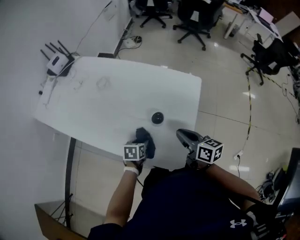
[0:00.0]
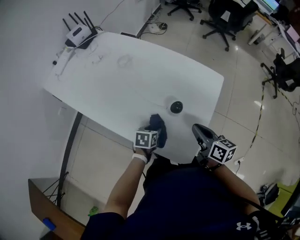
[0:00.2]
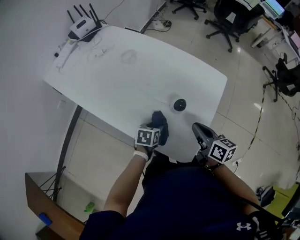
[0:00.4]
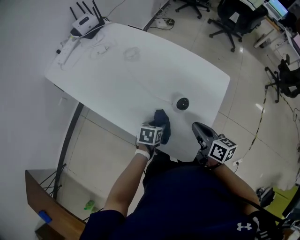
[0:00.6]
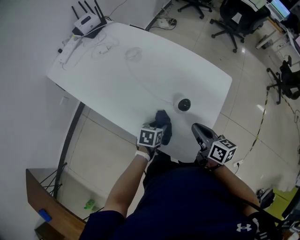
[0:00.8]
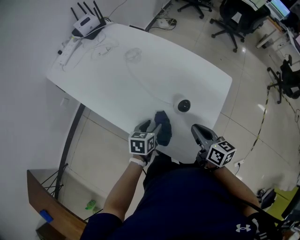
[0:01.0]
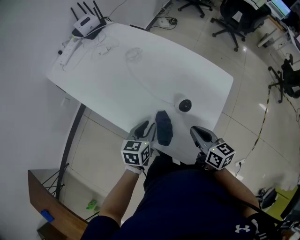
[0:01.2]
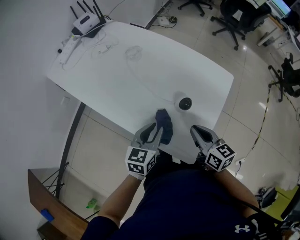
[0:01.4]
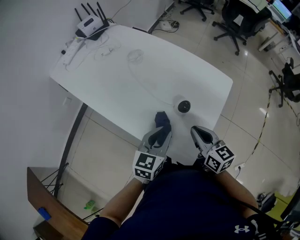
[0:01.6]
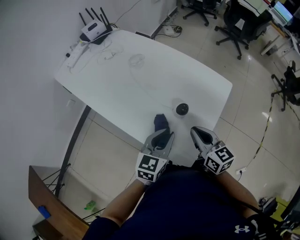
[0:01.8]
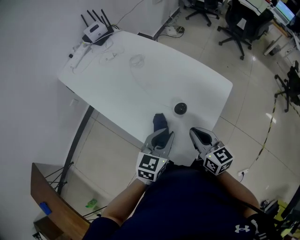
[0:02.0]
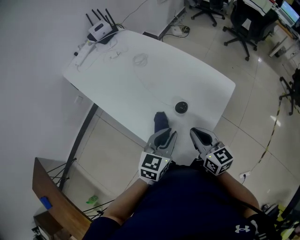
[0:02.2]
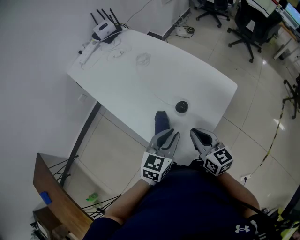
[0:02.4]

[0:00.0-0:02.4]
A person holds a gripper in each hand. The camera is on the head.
0:00.0 to 0:01.2: The left gripper shifts approximately 15 cm upward and to the left, and changes its angle by some 30 degrees. Meanwhile the right gripper travels to the left by roughly 10 cm.
0:01.2 to 0:02.4: The left gripper goes some 15 cm to the right, upward and backward; the right gripper changes place by some 5 cm.

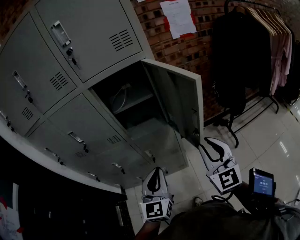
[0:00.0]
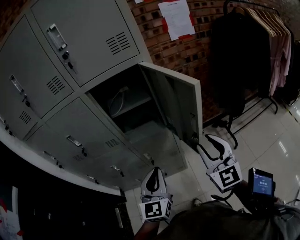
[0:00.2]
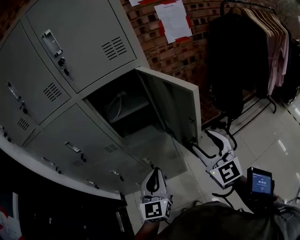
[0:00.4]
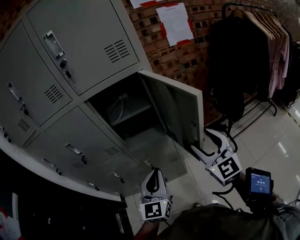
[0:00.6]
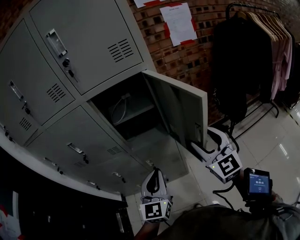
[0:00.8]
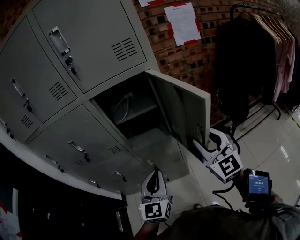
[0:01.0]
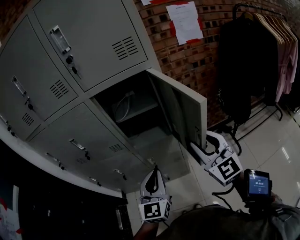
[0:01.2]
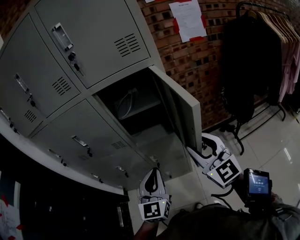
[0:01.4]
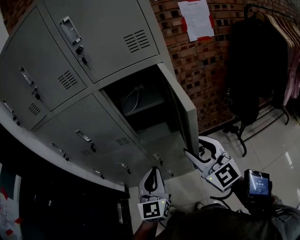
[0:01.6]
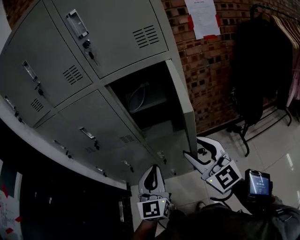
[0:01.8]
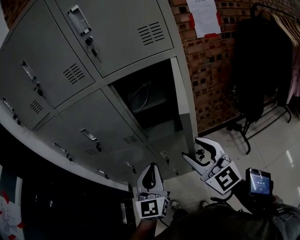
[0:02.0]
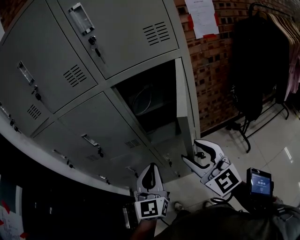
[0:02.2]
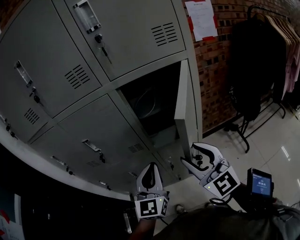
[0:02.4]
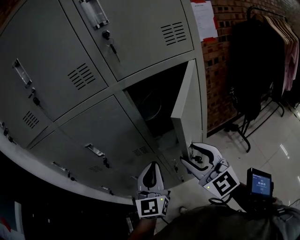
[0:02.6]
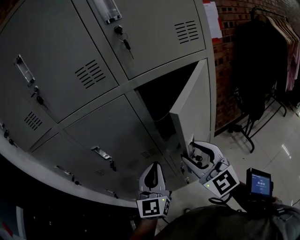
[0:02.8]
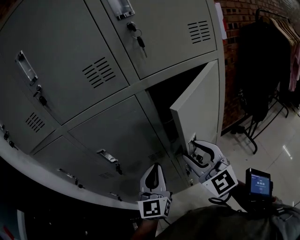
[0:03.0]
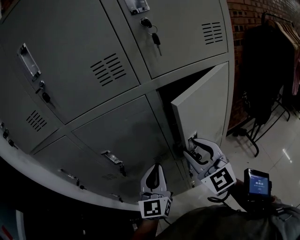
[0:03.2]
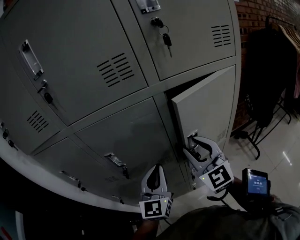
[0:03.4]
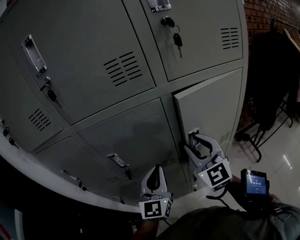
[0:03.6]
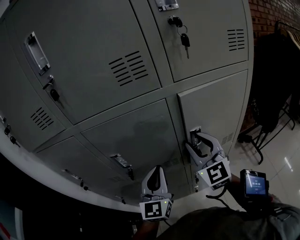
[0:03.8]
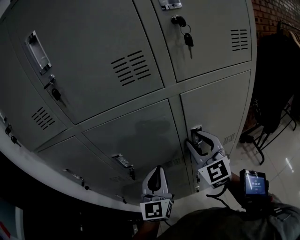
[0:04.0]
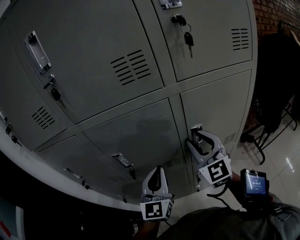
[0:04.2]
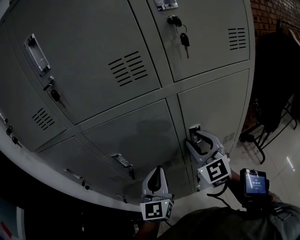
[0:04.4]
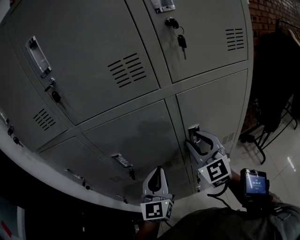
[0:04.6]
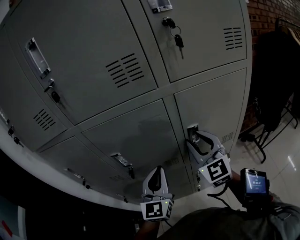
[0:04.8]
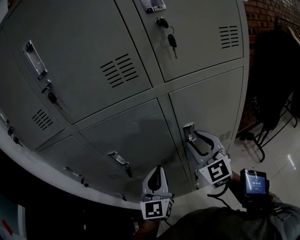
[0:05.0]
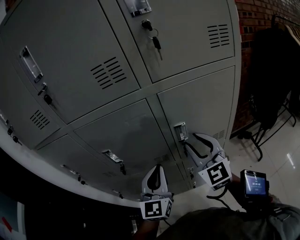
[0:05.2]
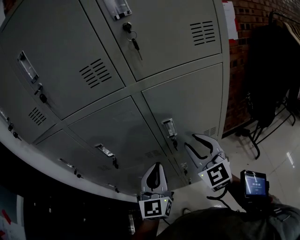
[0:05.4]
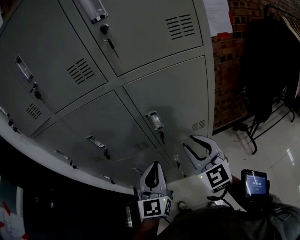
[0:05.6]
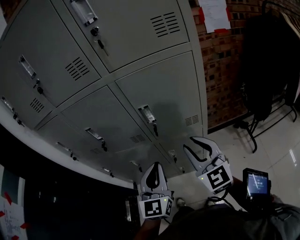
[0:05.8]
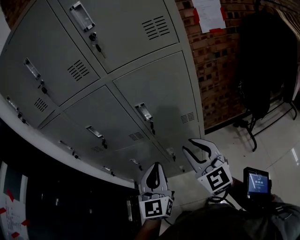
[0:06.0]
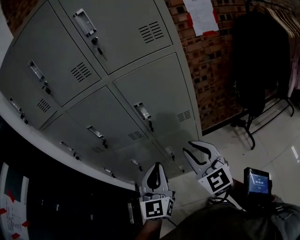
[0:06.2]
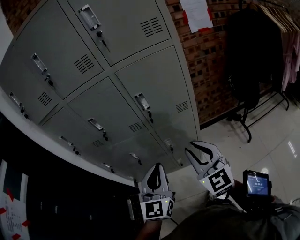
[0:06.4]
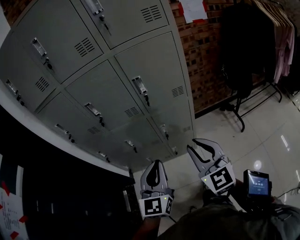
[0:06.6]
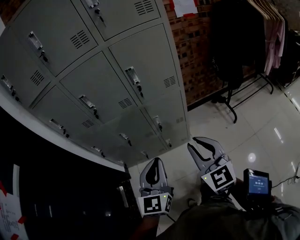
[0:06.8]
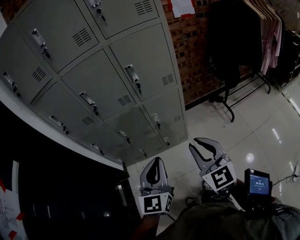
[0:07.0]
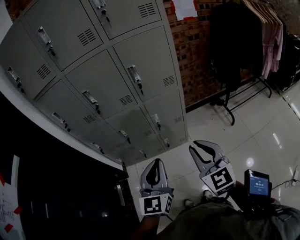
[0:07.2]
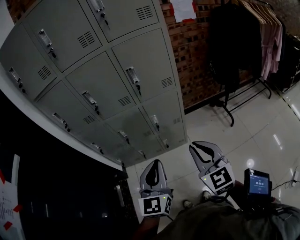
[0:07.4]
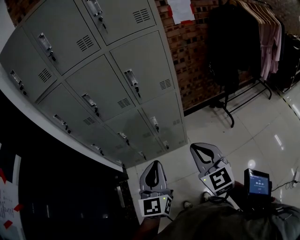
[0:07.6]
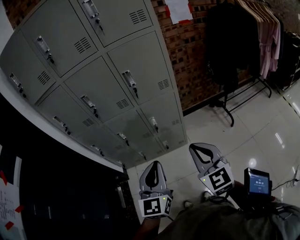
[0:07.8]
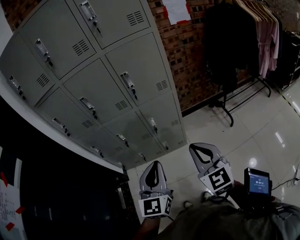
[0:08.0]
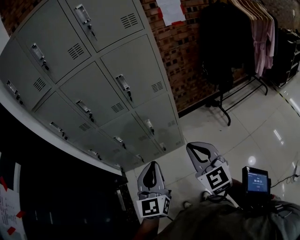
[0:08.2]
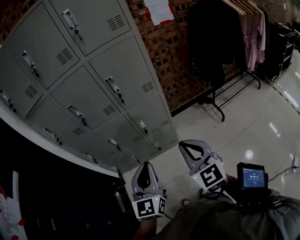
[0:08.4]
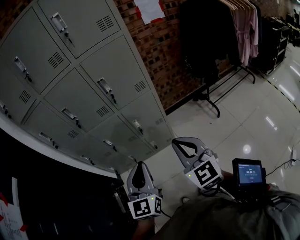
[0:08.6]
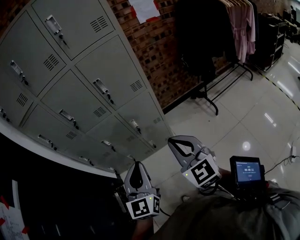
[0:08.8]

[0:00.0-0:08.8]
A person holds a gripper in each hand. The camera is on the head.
0:00.0 to 0:01.4: The right gripper moves forward, approximately 5 cm, and opens, then closes once more.
0:01.4 to 0:03.0: The two grippers go approximately 25 cm to the left and forward.
0:03.0 to 0:04.4: The right gripper heads forward, covering about 10 cm. Meanwhile the left gripper travels to the left by about 5 cm.
0:04.4 to 0:05.8: The left gripper heads to the right and backward, covering approximately 20 cm. Meanwhile the right gripper goes approximately 20 cm backward and to the right.
0:05.8 to 0:07.4: Both grippers move backward, approximately 30 cm.
0:07.4 to 0:08.8: The grippers move only a little.

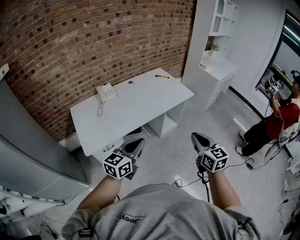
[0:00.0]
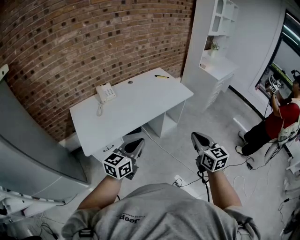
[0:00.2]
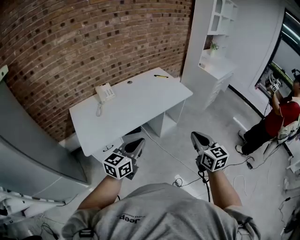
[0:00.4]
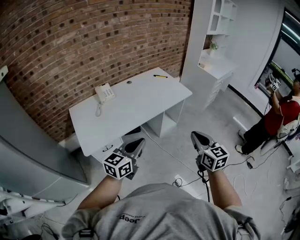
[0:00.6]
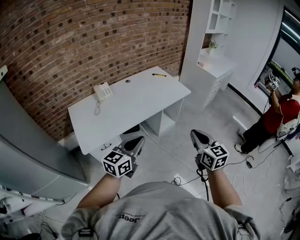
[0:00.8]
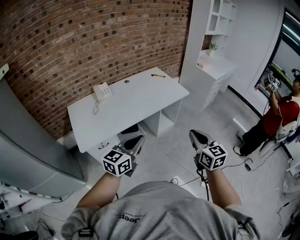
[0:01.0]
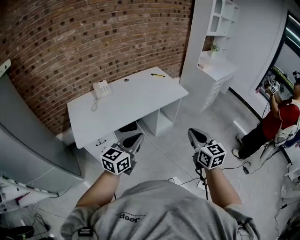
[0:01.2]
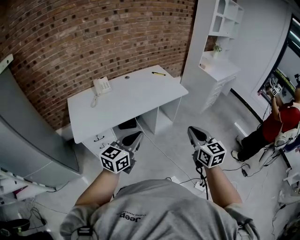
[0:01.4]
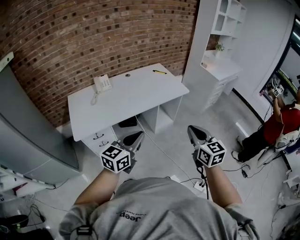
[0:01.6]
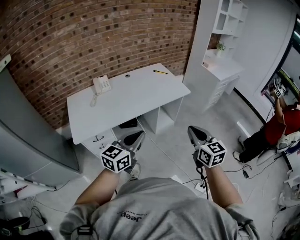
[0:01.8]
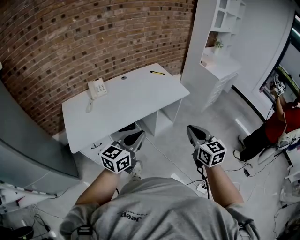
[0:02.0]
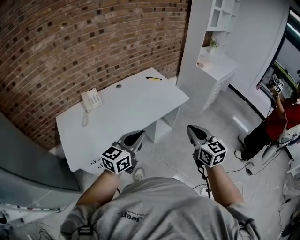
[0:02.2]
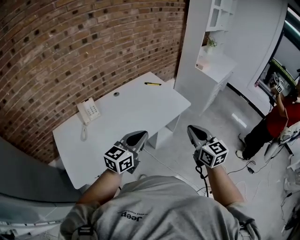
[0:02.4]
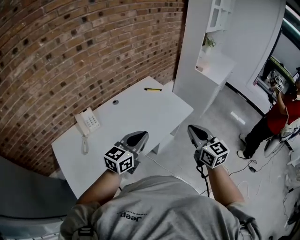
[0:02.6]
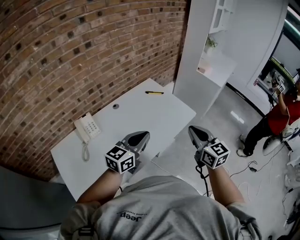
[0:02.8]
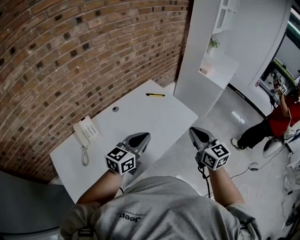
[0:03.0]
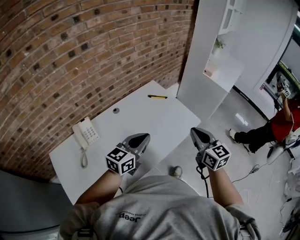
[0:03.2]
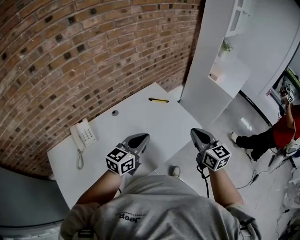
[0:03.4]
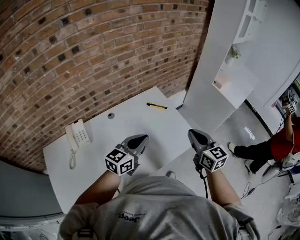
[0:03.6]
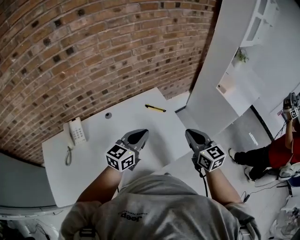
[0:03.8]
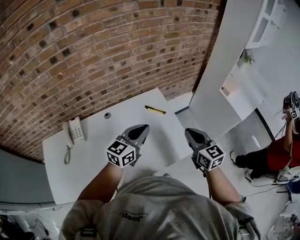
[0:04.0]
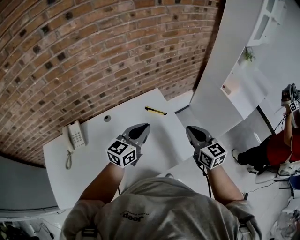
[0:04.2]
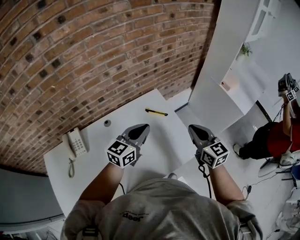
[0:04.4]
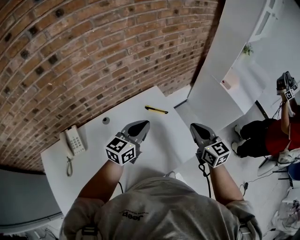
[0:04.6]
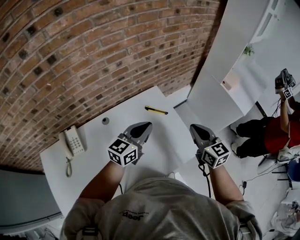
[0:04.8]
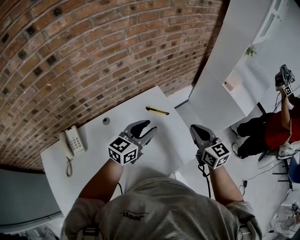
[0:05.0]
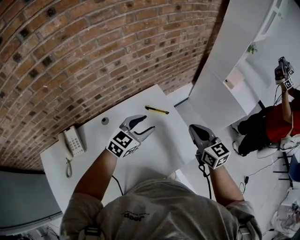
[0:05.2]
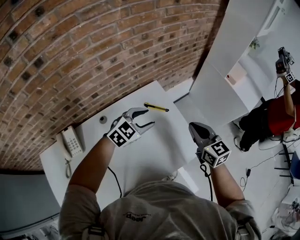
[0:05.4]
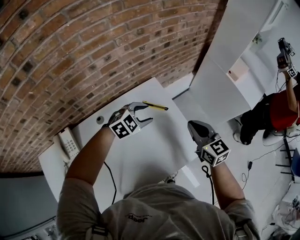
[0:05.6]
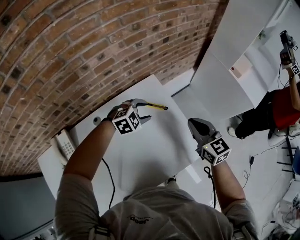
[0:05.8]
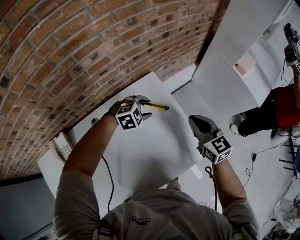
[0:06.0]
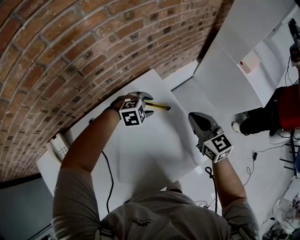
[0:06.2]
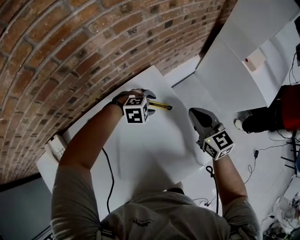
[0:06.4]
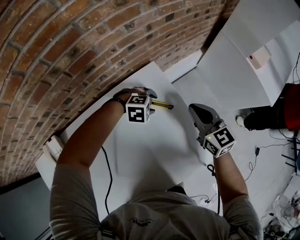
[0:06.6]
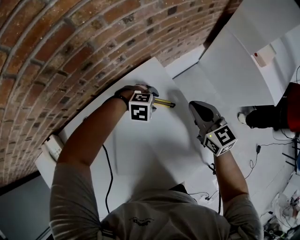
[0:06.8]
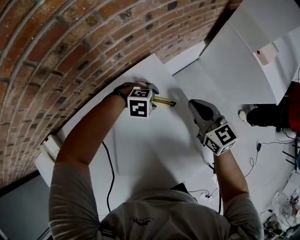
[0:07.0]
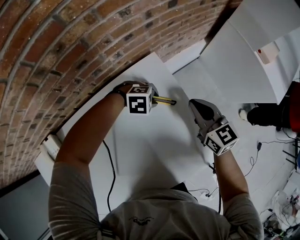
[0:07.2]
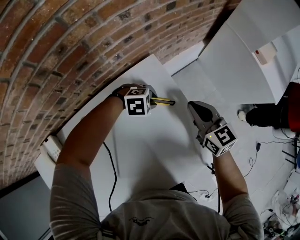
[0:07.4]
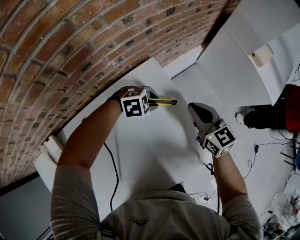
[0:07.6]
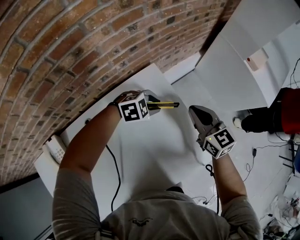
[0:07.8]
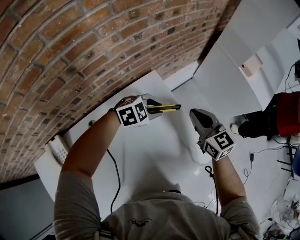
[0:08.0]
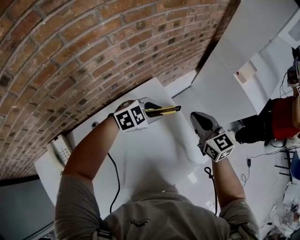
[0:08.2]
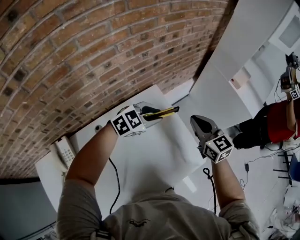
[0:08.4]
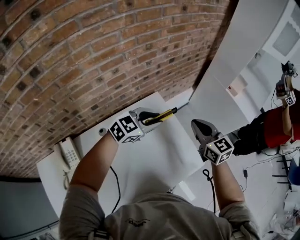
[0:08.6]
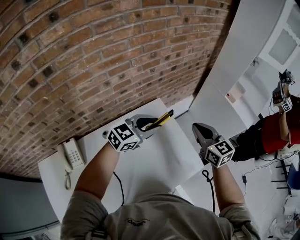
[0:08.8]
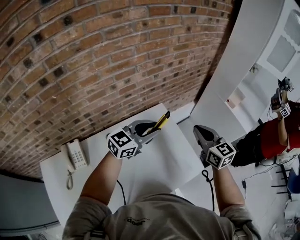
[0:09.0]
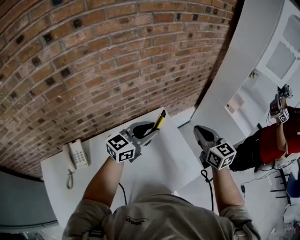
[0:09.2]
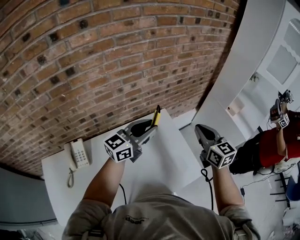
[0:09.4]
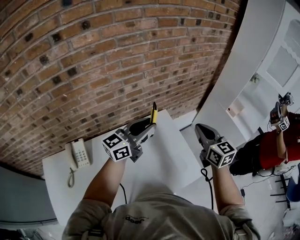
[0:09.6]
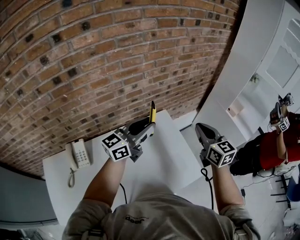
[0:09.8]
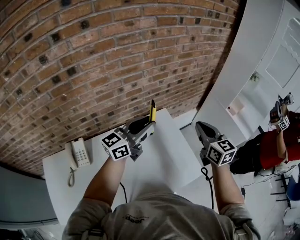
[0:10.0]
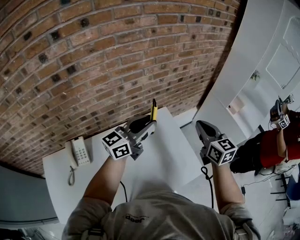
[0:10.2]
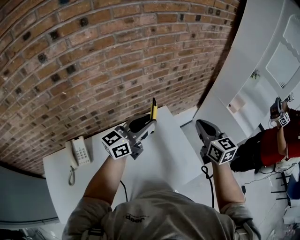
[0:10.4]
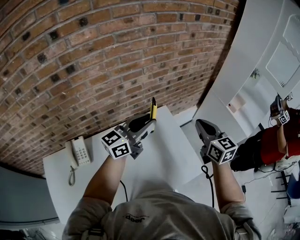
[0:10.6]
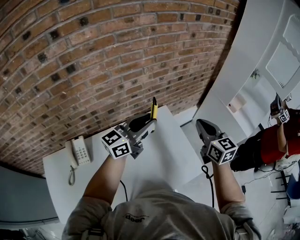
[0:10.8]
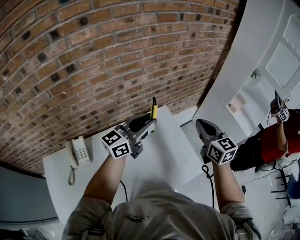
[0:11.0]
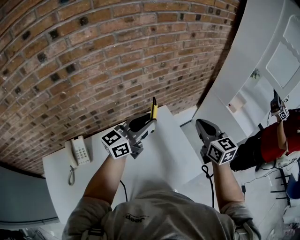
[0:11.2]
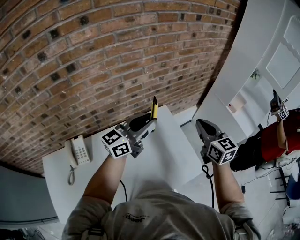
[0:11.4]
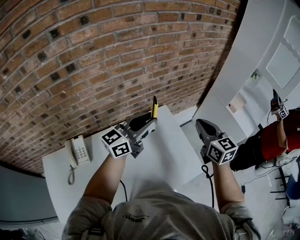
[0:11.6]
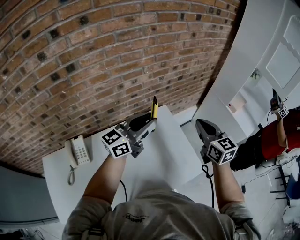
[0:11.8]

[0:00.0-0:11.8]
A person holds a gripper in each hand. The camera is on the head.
0:00.0 to 0:01.4: The two grippers go some 10 cm to the right.
0:01.4 to 0:03.0: Both grippers are carried forward, about 50 cm.
0:03.0 to 0:04.4: The grippers both shift forward by some 30 cm.
0:04.4 to 0:06.0: The right gripper travels forward and downward by approximately 15 cm. The left gripper is displaced downward and forward by about 30 cm, angles its fingers downward, by some 50 degrees, and opens its fingers.
0:06.0 to 0:07.4: Both grippers travel together downward, about 10 cm. The left gripper changes its angle by some 20 degrees, and closes up.
0:07.4 to 0:08.8: The right gripper shifts roughly 20 cm upward; the left gripper goes roughly 35 cm upward, and angles its fingers upward, by approximately 50 degrees.
0:08.8 to 0:10.4: The right gripper goes some 5 cm upward. Meanwhile the left gripper travels upward and to the left by about 10 cm, and turns by roughly 30 degrees.
0:10.4 to 0:11.8: Neither gripper changes place.
